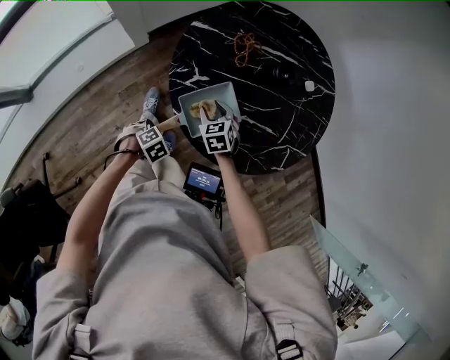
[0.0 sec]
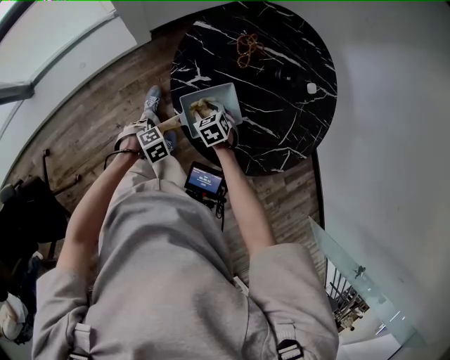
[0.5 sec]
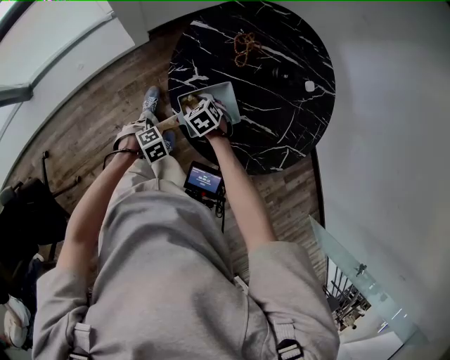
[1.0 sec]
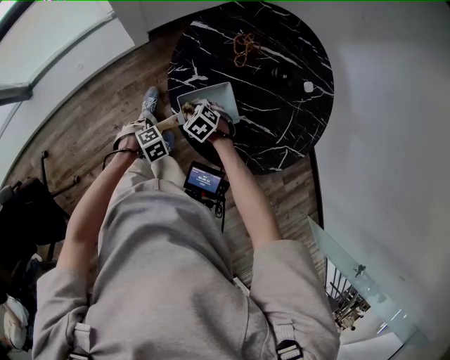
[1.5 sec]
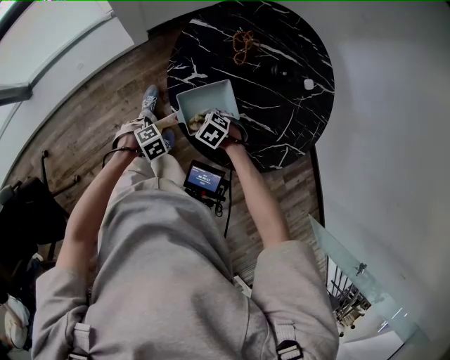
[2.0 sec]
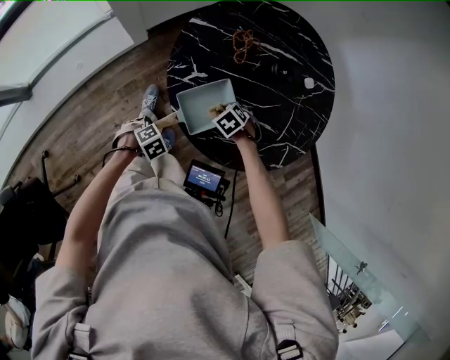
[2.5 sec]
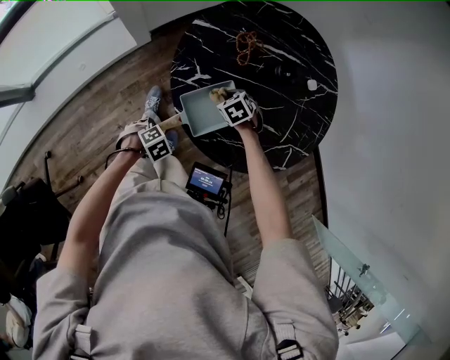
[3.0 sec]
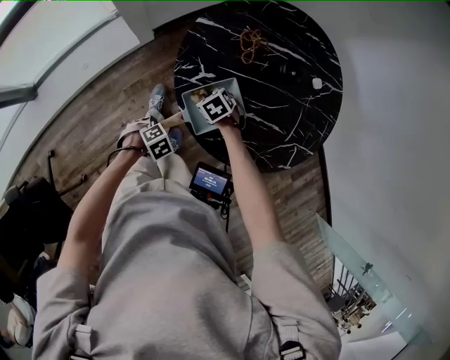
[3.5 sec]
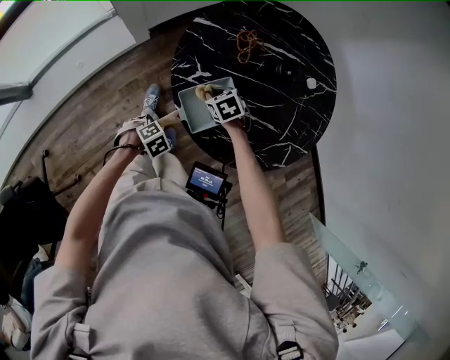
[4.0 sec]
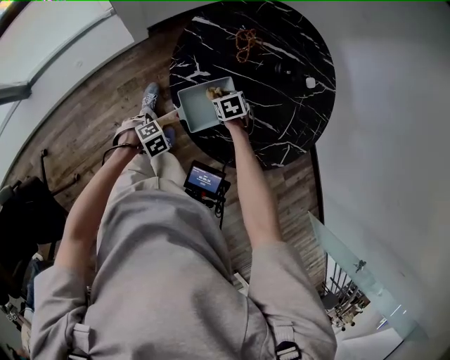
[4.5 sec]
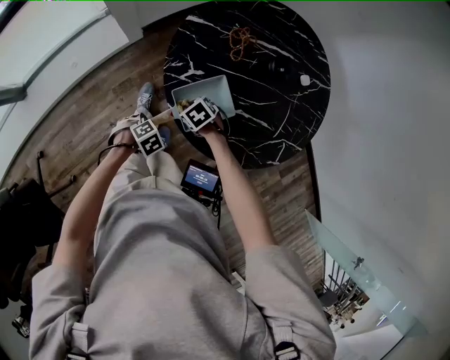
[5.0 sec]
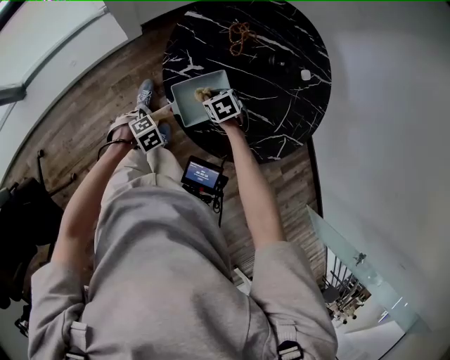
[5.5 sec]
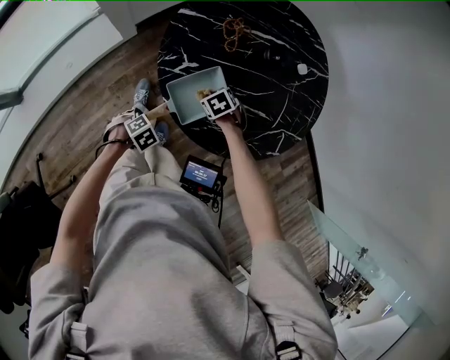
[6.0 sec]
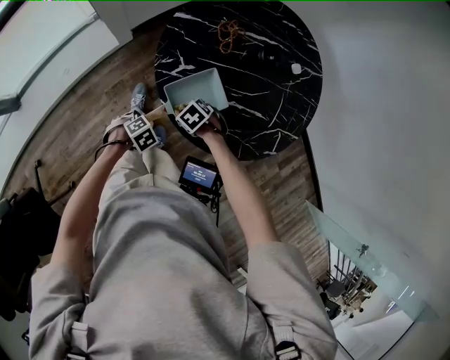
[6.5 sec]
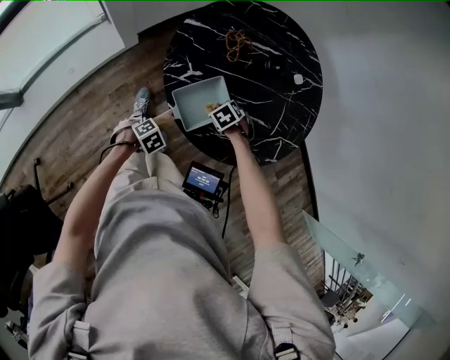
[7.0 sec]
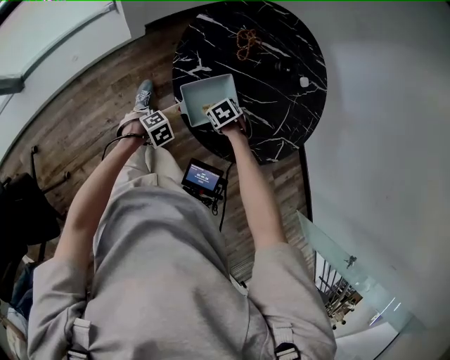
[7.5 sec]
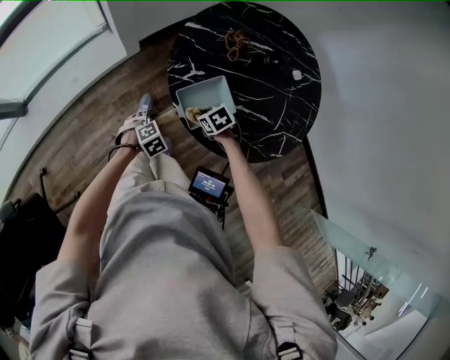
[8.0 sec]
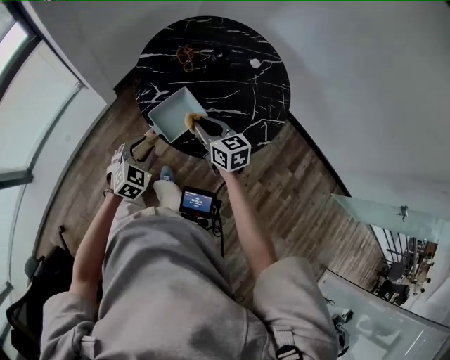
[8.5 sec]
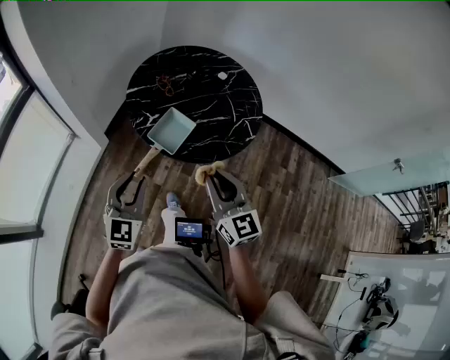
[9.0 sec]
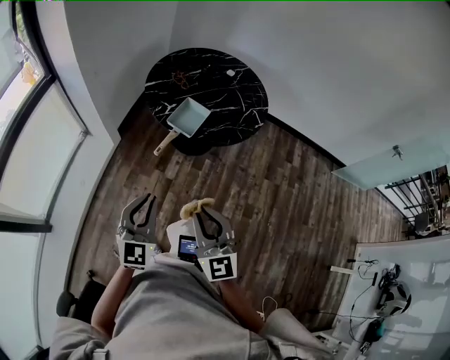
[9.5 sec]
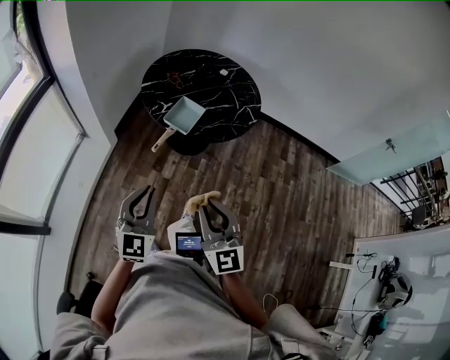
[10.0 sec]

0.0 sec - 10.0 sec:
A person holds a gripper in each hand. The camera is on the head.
0.0 sec - 2.0 sec: The right gripper shifts by approximately 10 cm, changes its angle by about 50 degrees, and closes its fingers.
2.0 sec - 4.0 sec: The right gripper ends up some 10 cm from where it was, and rotates some 30 degrees.
4.0 sec - 6.0 sec: The right gripper moves roughly 5 cm.
6.0 sec - 8.0 sec: The right gripper shifts by roughly 10 cm.
8.0 sec - 10.0 sec: The right gripper changes place by roughly 60 cm, and angles its fingers upward, by about 70 degrees.

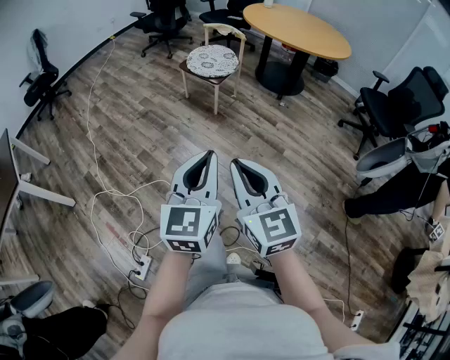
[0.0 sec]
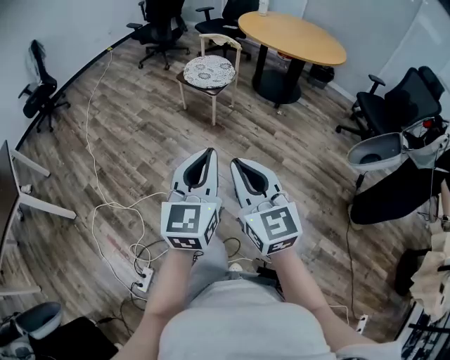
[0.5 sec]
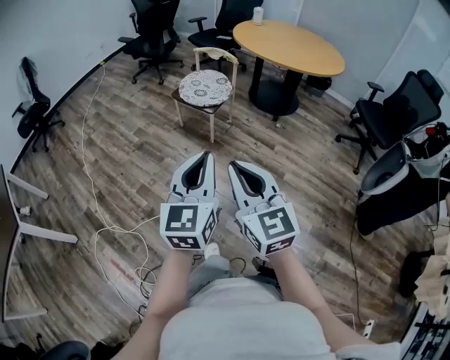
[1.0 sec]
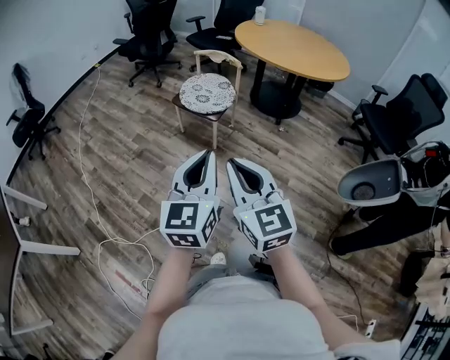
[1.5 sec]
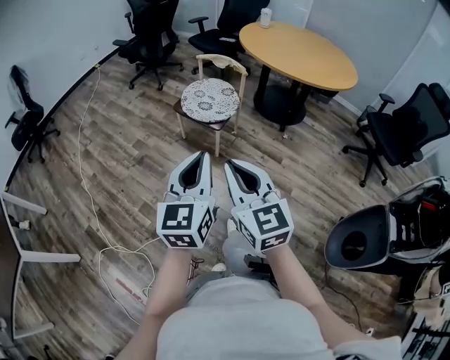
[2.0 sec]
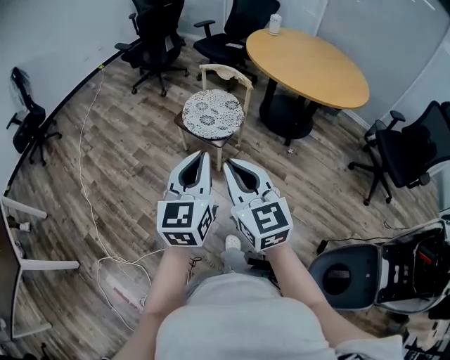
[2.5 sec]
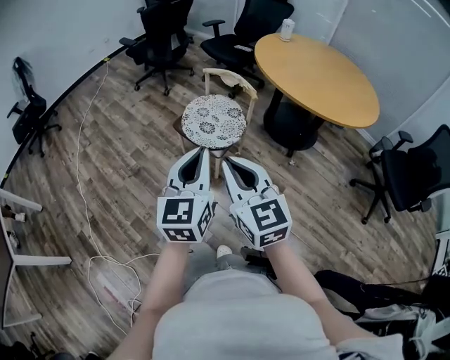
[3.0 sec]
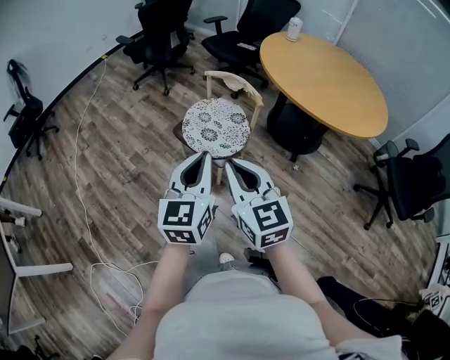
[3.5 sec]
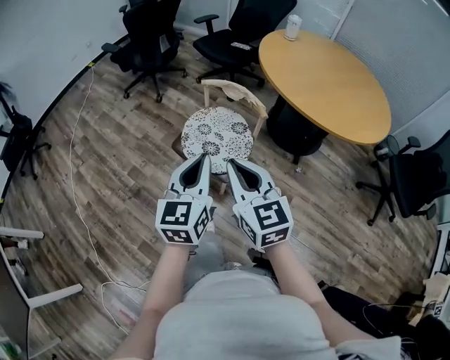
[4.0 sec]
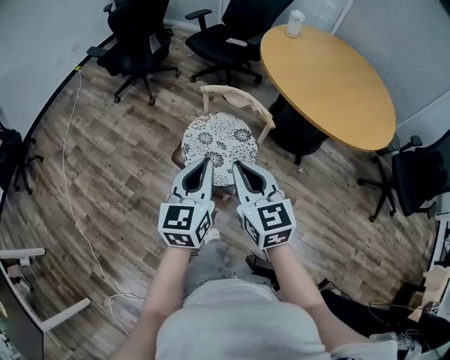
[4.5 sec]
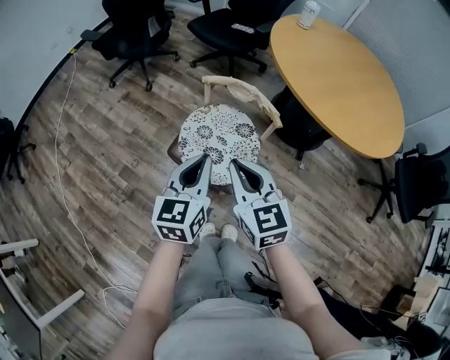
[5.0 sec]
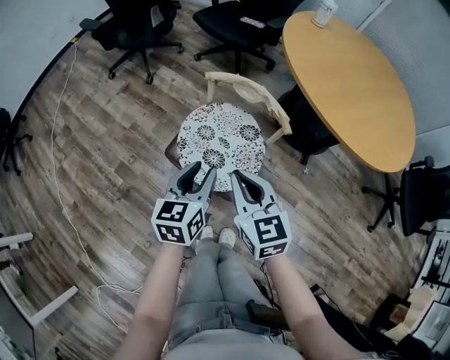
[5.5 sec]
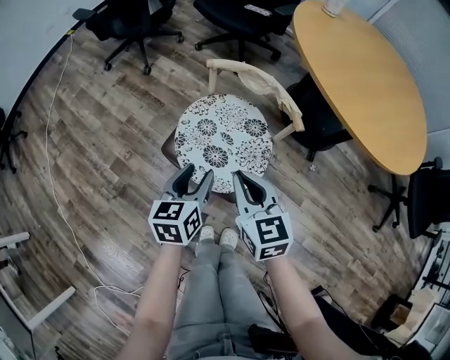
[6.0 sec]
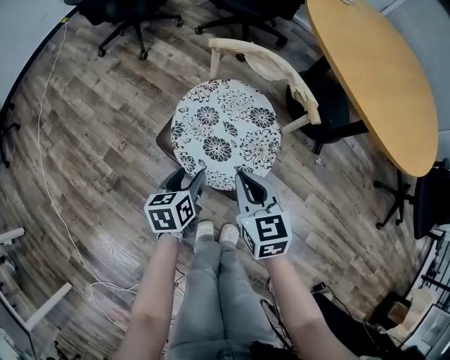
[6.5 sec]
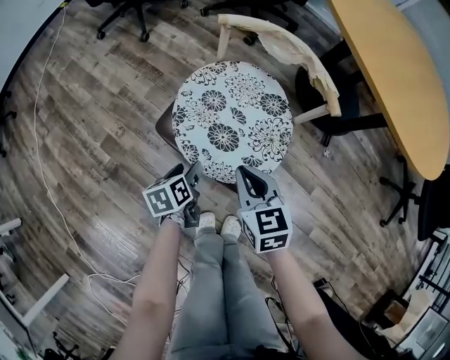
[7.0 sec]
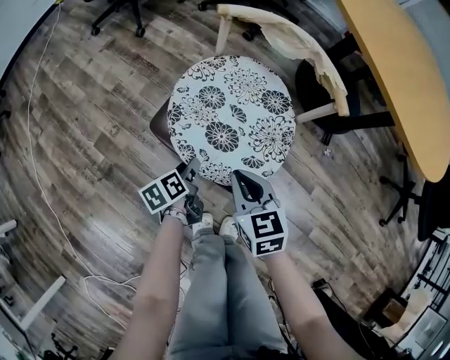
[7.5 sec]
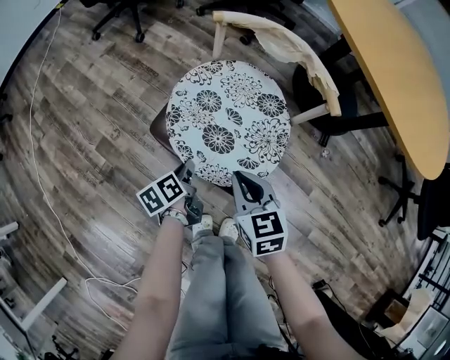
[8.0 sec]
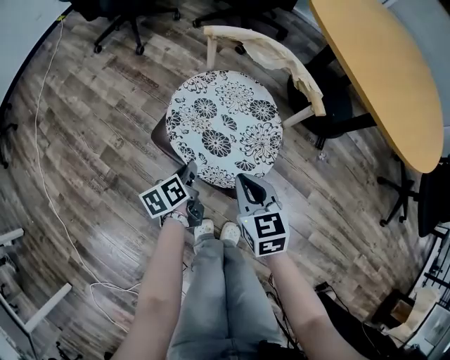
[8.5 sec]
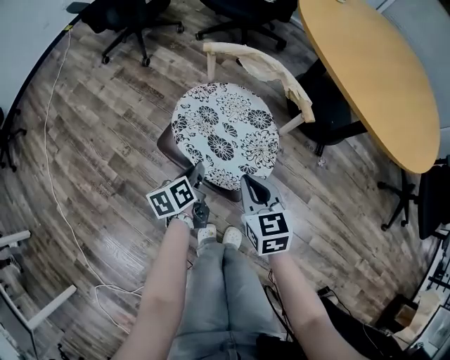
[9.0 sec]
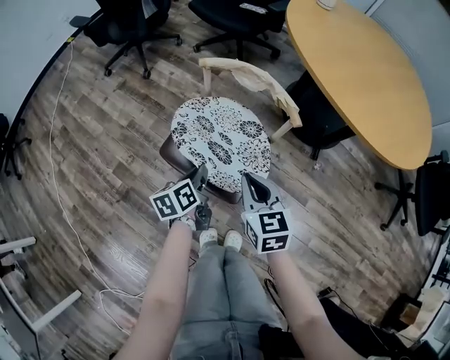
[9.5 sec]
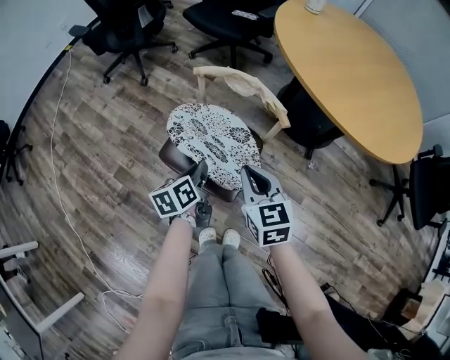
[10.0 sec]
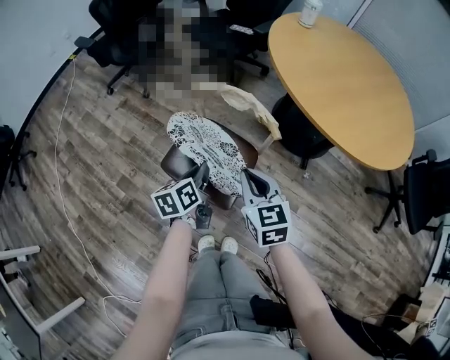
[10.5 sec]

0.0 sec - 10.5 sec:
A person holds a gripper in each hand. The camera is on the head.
0.0 sec - 2.0 sec: Both grippers travel together forward, about 35 cm.
2.0 sec - 4.0 sec: The pair of grippers is taken forward, some 40 cm.
4.0 sec - 6.5 sec: Both grippers move downward and forward, about 40 cm. The left gripper angles its fingers downward, by roughly 30 degrees, and opens up. Meanwhile the right gripper turns by about 20 degrees.
6.5 sec - 8.5 sec: The grippers both shift downward by some 5 cm. The left gripper turns by roughly 20 degrees, and closes its fingers.
8.5 sec - 10.5 sec: Both grippers move upward, about 20 cm.

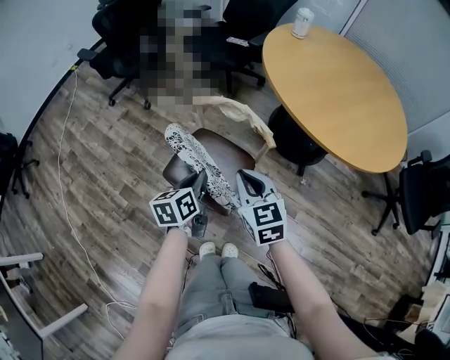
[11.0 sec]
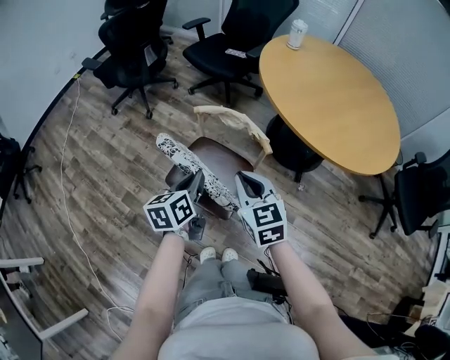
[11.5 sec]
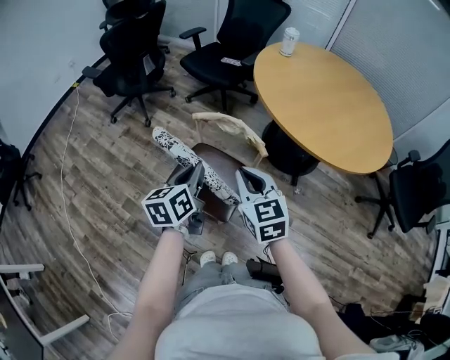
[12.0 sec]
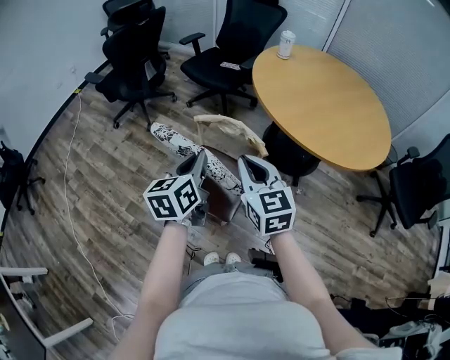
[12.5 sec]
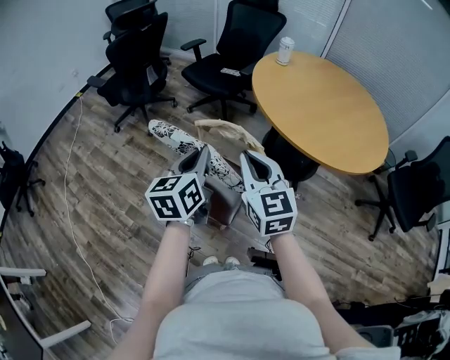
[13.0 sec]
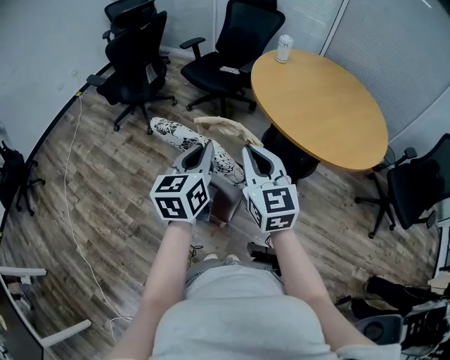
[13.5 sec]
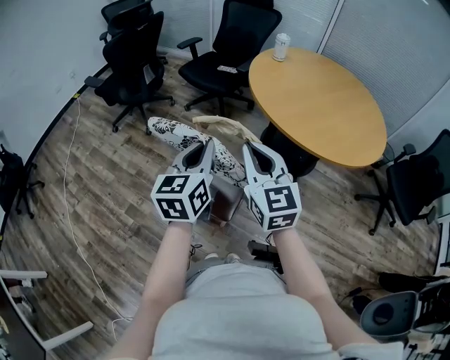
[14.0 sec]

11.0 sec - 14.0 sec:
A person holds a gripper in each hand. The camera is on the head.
11.0 sec - 12.5 sec: Both grippers move upward, approximately 15 cm.
12.5 sec - 14.0 sec: The grippers both shift upward by some 5 cm.

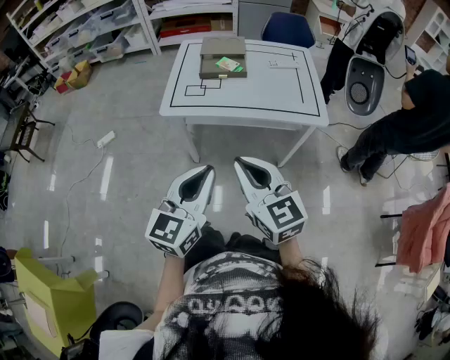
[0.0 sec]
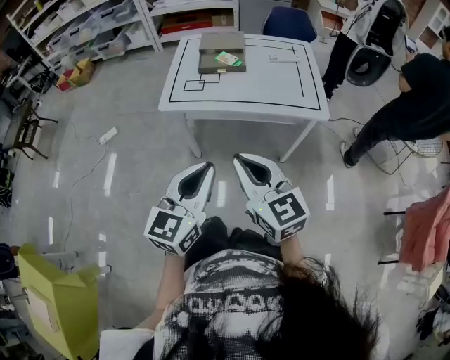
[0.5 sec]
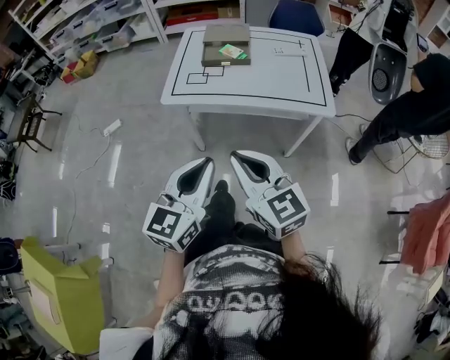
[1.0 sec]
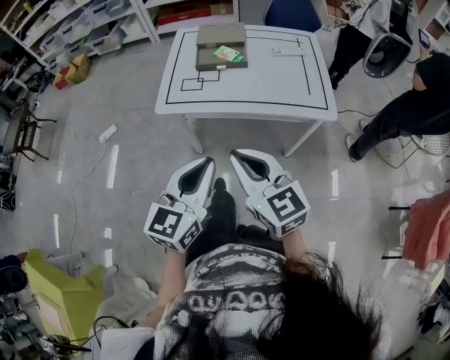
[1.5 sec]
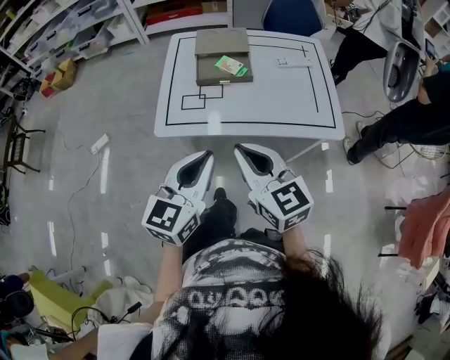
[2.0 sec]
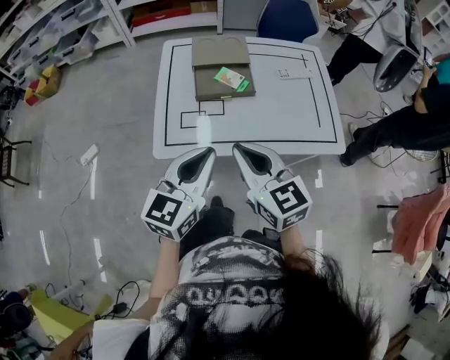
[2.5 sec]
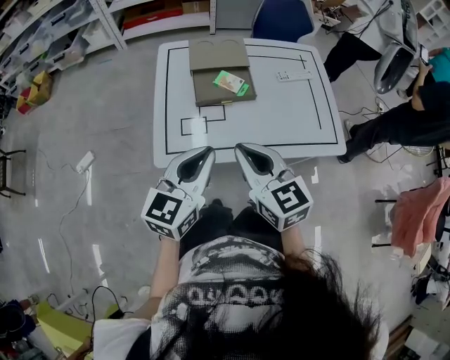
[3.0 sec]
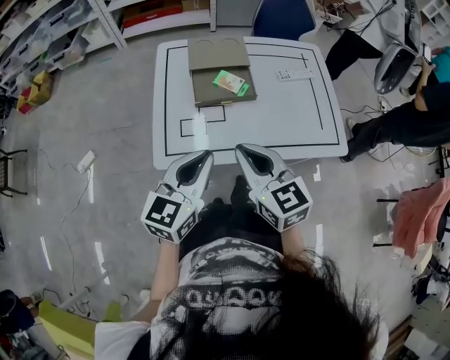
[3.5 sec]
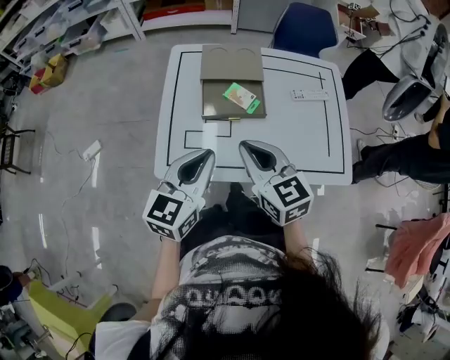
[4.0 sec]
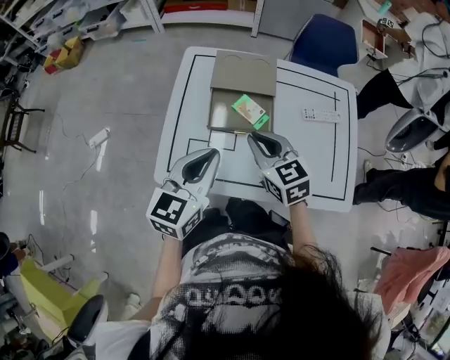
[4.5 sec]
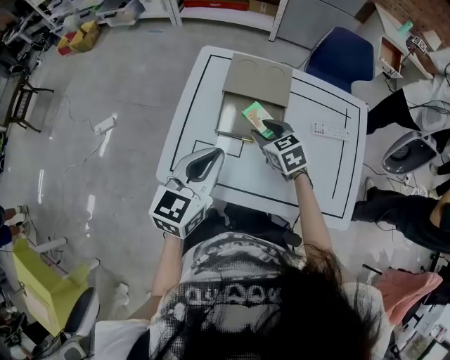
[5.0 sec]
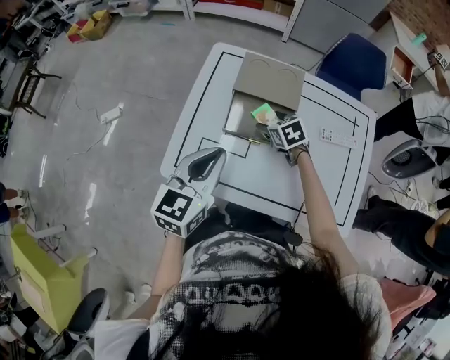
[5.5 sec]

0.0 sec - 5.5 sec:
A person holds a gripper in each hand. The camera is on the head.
0.0 sec - 2.0 sec: Both grippers travel together forward, approximately 20 cm.
2.0 sec - 3.5 sec: Both grippers travel together forward, roughly 15 cm.
3.5 sec - 5.5 sec: The left gripper goes approximately 15 cm forward, and rotates approximately 20 degrees. Meanwhile the right gripper heads forward and downward, covering some 40 cm, points its fingers some 30 degrees further downward, and opens.
